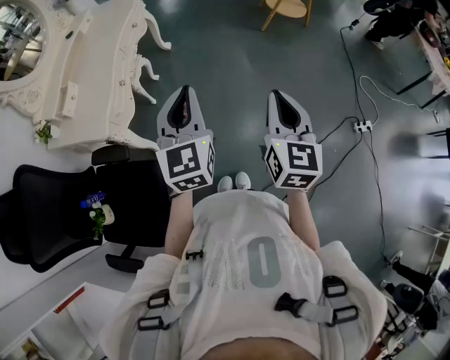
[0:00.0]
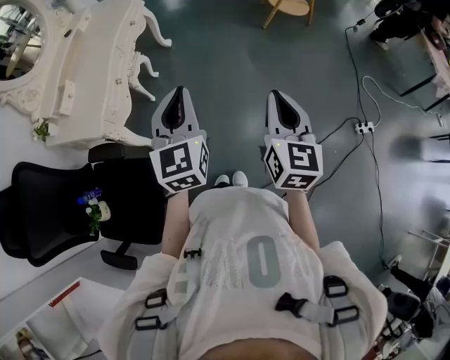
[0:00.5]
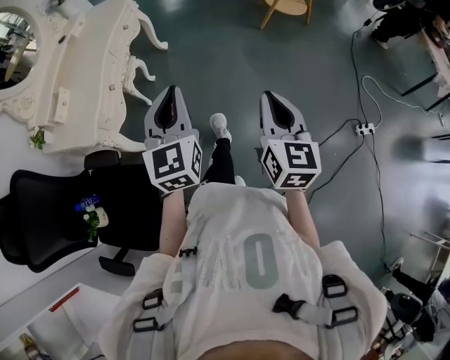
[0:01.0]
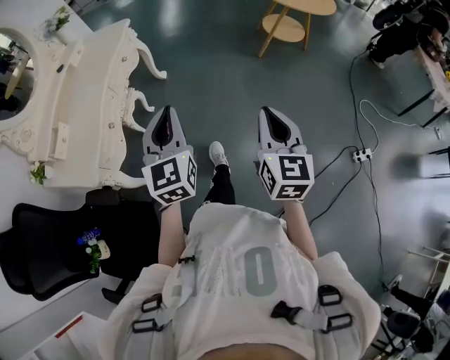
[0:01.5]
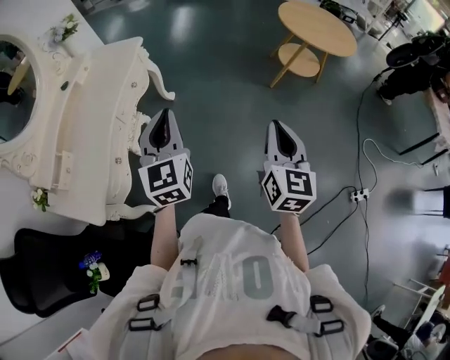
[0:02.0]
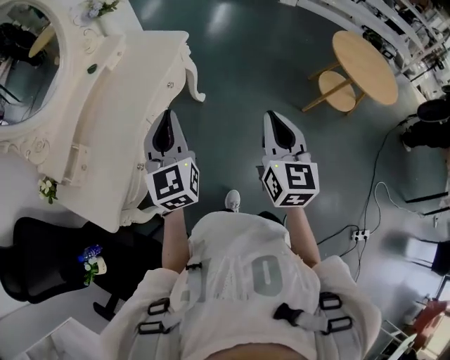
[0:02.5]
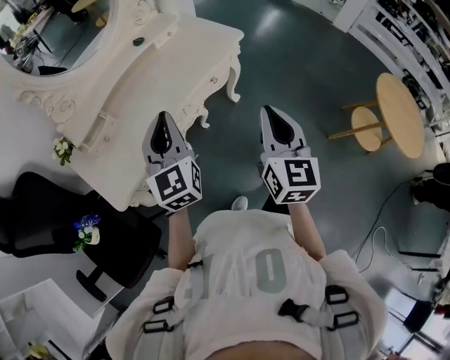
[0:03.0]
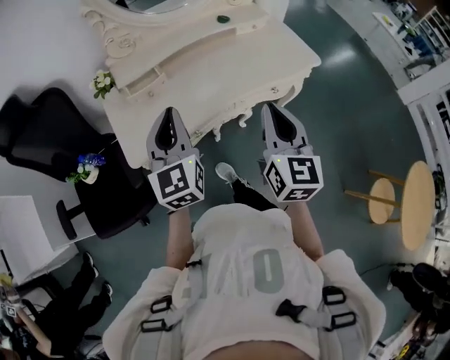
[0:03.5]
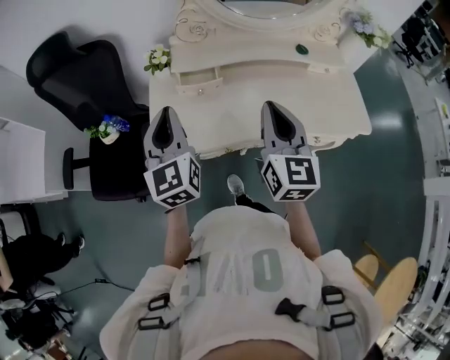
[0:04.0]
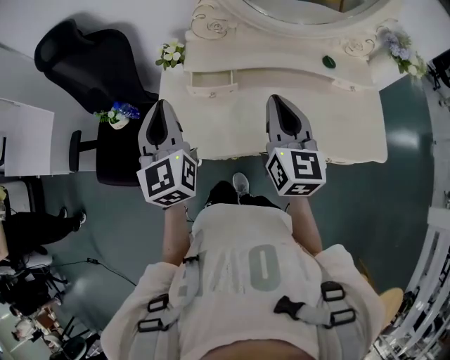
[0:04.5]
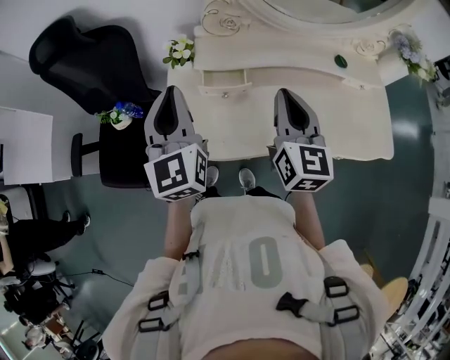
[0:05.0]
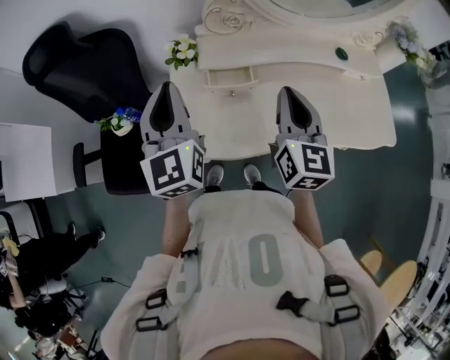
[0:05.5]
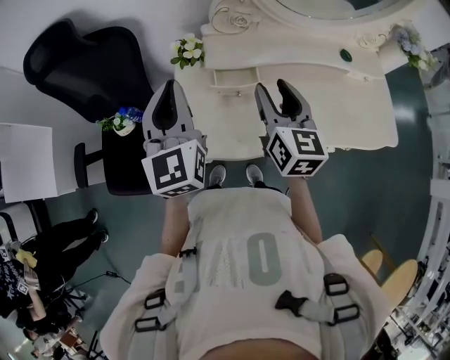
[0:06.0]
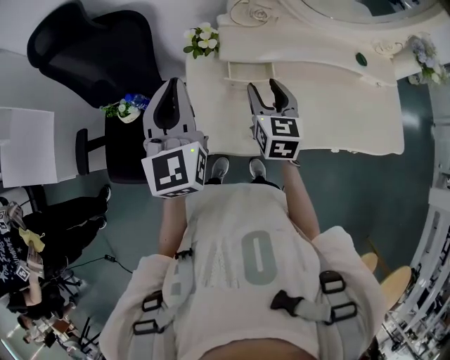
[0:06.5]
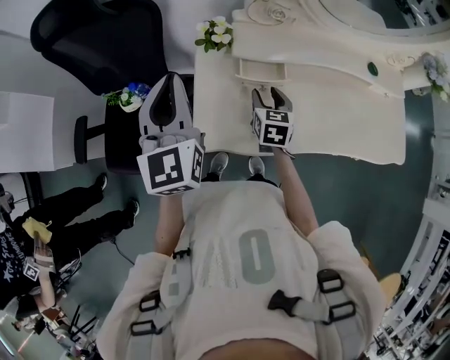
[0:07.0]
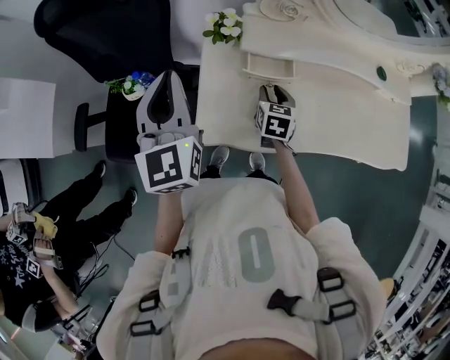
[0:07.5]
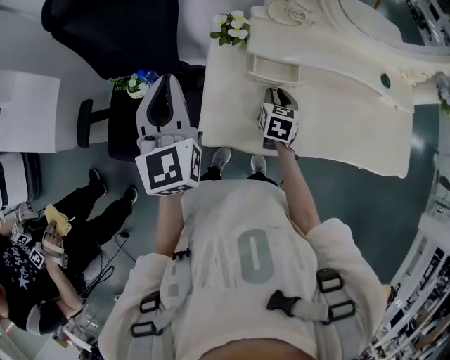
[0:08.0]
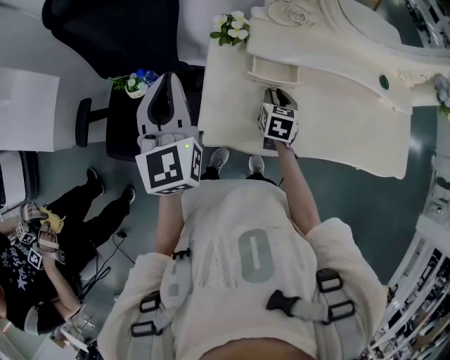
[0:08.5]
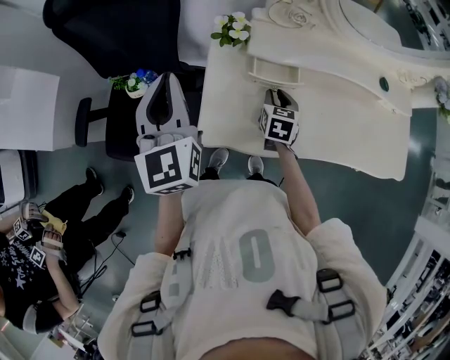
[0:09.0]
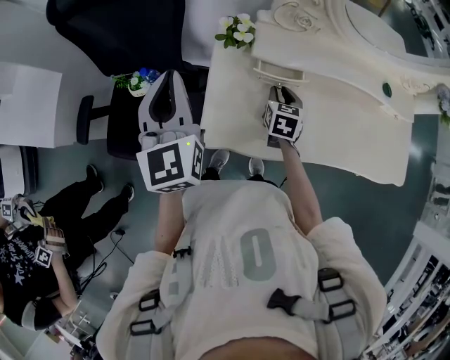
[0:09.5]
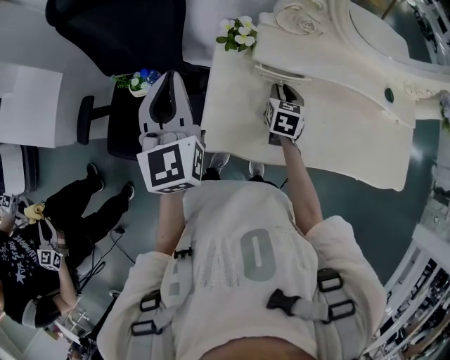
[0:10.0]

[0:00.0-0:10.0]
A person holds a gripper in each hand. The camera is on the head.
0:00.0 to 0:02.0: Both grippers travel together forward, about 35 cm.
0:02.0 to 0:04.0: Both grippers are carried roughly 50 cm. The right gripper swivels approximately 90 degrees. Meanwhile the left gripper swivels some 80 degrees.
0:04.0 to 0:06.0: The grippers both shift forward and to the left by about 15 cm. The right gripper opens its fingers.
0:06.0 to 0:08.0: The left gripper travels to the left by about 10 cm. The right gripper shifts some 25 cm downward, rotates about 30 degrees, and closes.
0:08.0 to 0:10.0: The grippers make only small movements.

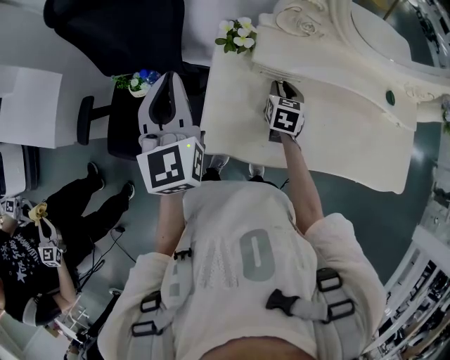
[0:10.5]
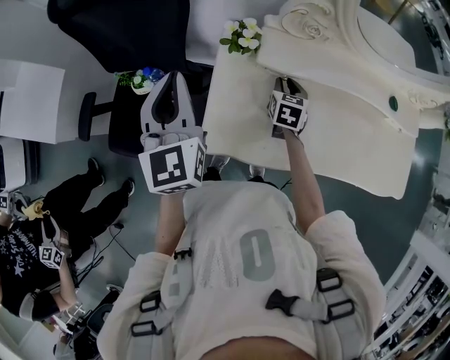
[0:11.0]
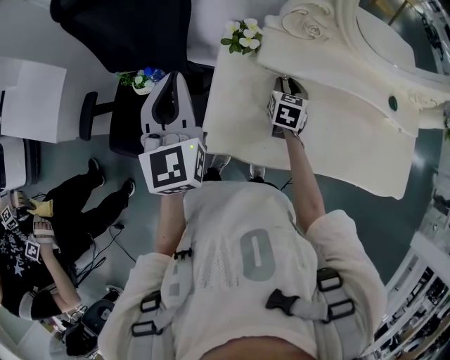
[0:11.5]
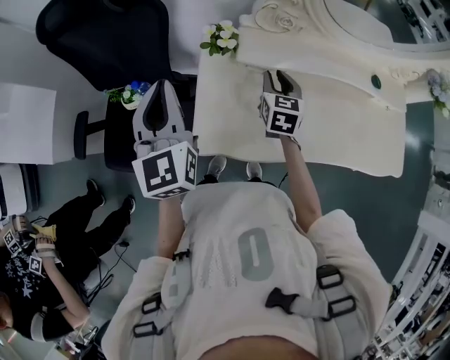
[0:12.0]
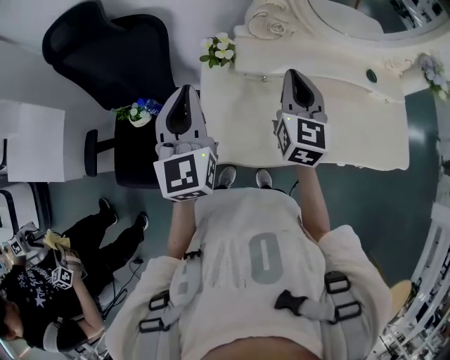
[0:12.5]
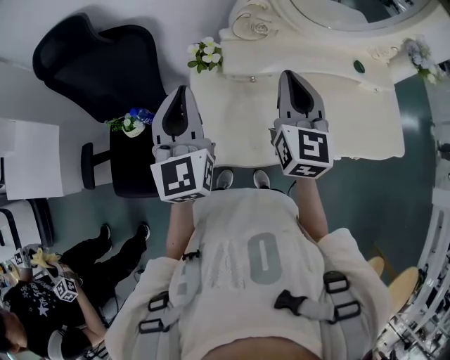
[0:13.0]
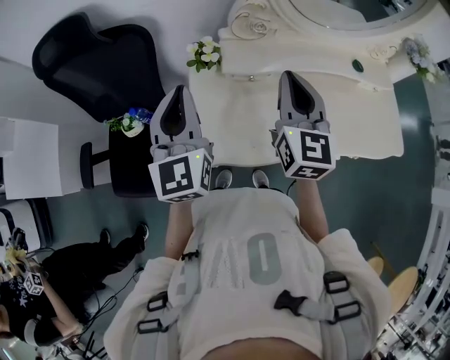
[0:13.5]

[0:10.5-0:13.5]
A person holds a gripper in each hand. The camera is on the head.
0:10.5 to 0:12.0: The right gripper moves upward, approximately 10 cm.
0:12.0 to 0:13.5: The left gripper goes approximately 5 cm to the right; the right gripper is displaced upward and backward by roughly 20 cm, changes its angle by roughly 20 degrees, and closes its fingers.

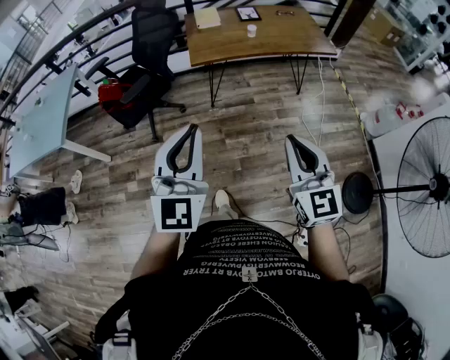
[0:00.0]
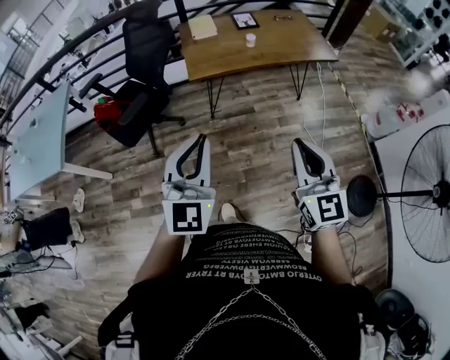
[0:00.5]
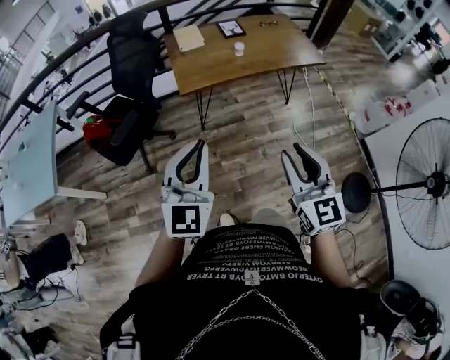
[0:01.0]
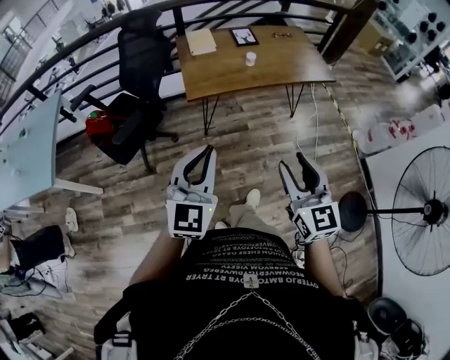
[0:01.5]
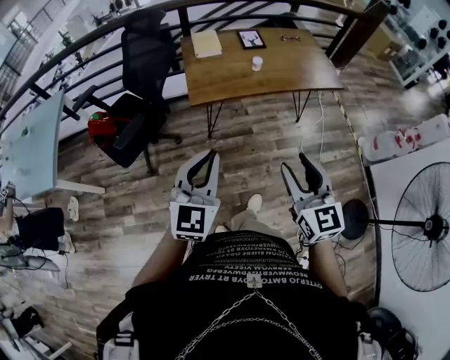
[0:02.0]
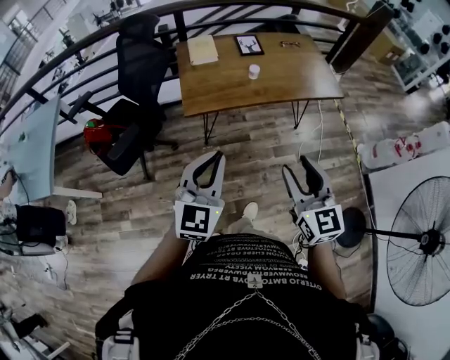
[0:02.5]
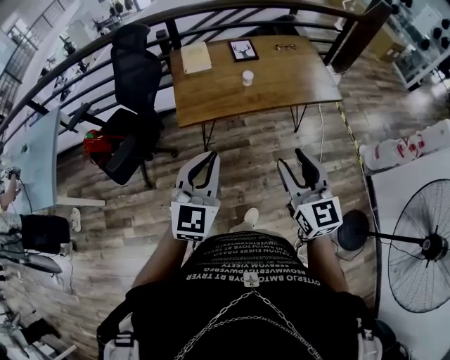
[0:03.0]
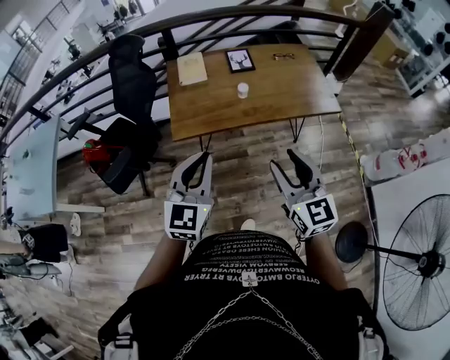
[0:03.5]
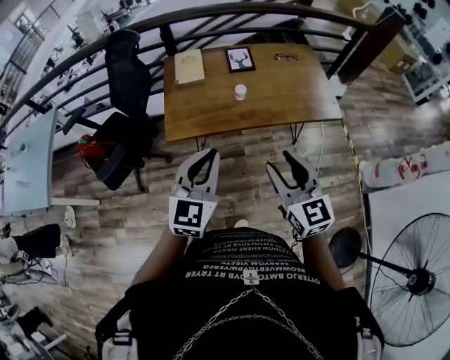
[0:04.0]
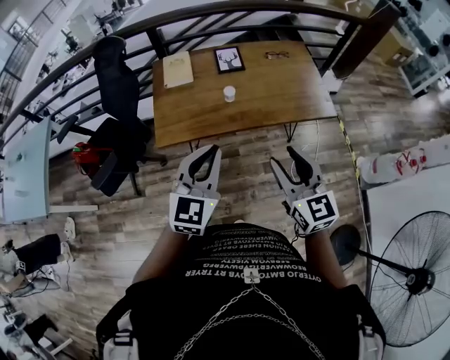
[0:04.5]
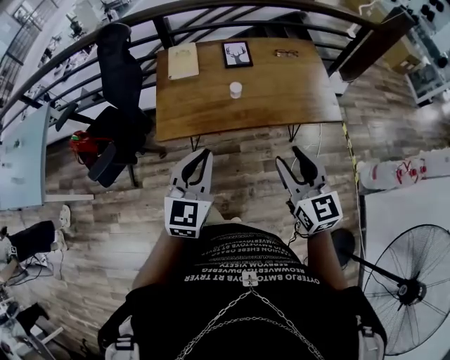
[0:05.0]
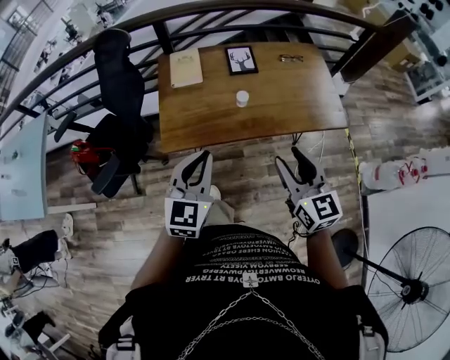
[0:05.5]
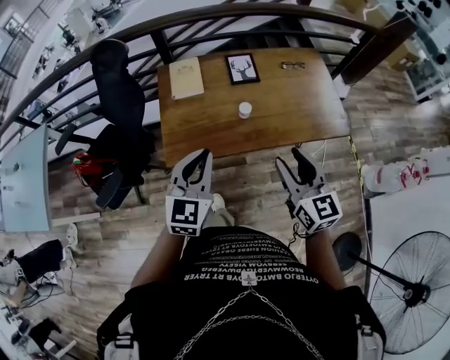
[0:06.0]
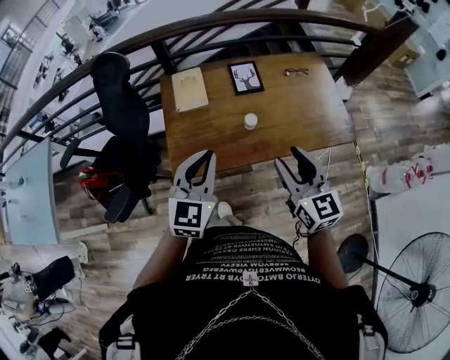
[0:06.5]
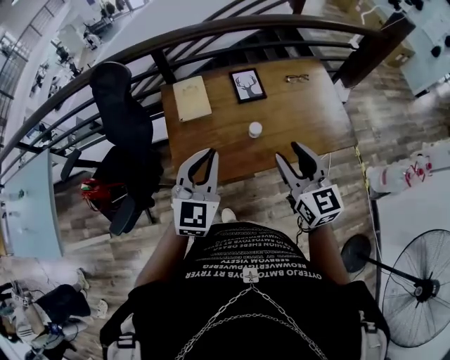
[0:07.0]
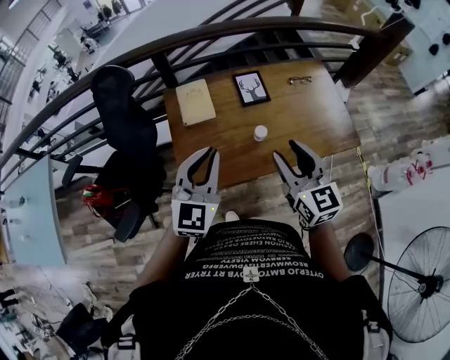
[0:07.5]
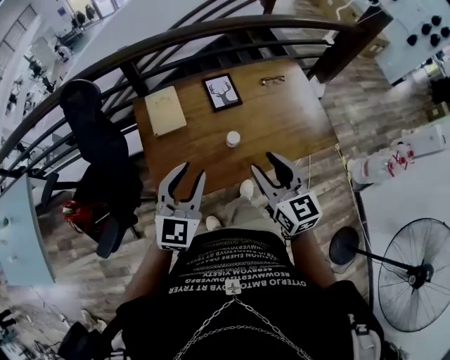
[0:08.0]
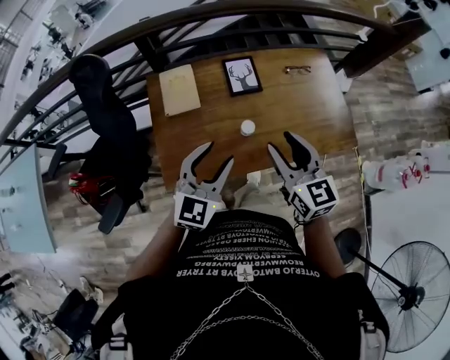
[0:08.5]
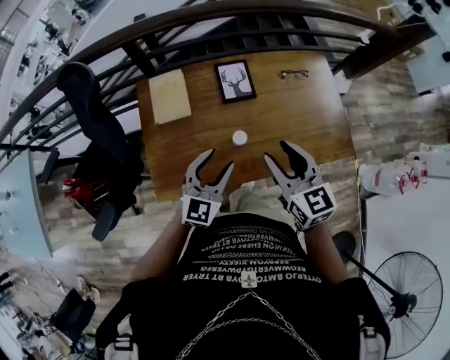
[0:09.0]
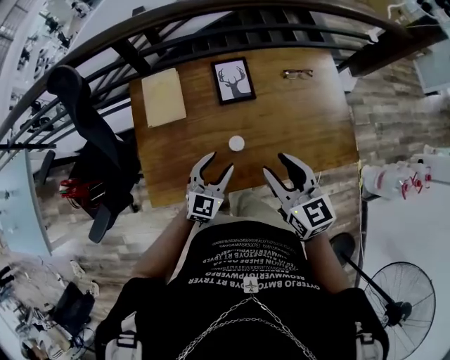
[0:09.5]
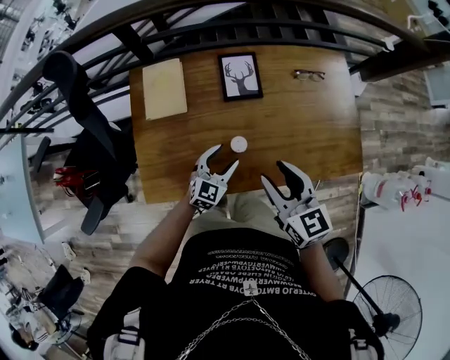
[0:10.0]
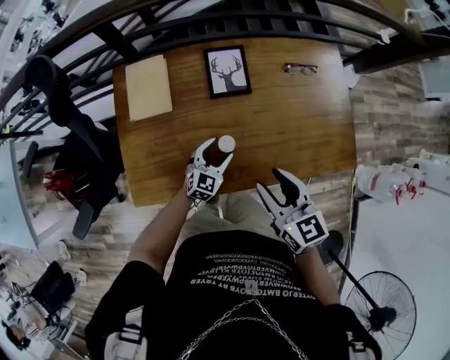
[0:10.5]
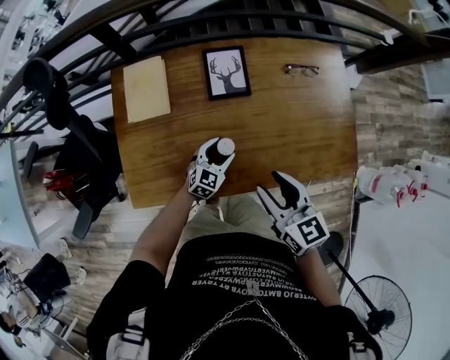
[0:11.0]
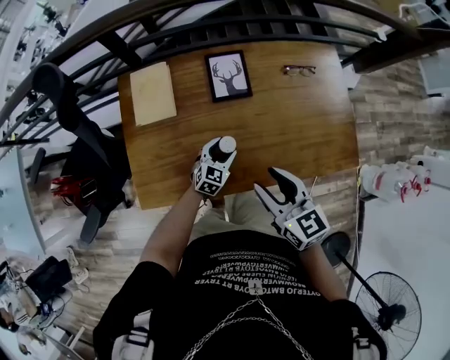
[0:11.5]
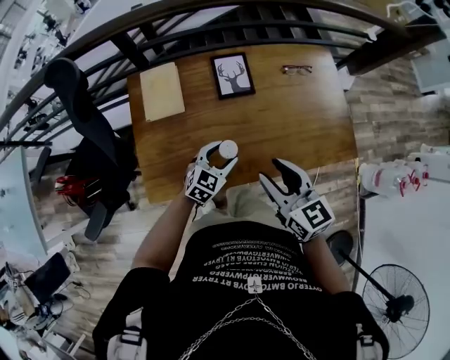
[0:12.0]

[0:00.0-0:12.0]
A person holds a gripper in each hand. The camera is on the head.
0:00.0 to 0:02.0: The grippers both shift forward by approximately 25 cm. The right gripper opens.
0:02.0 to 0:04.0: The two grippers go approximately 25 cm forward and to the right.
0:04.0 to 0:06.0: The grippers both shift forward by approximately 15 cm.
0:06.0 to 0:08.0: The right gripper goes approximately 15 cm forward and to the left. Meanwhile the left gripper shifts roughly 10 cm forward, and opens.
0:08.0 to 0:10.0: The left gripper shifts approximately 35 cm downward, forward and to the right, and opens; the right gripper shifts about 15 cm downward, forward and to the right.
0:10.0 to 0:12.0: The left gripper reaches roughly 5 cm downward, then returns.

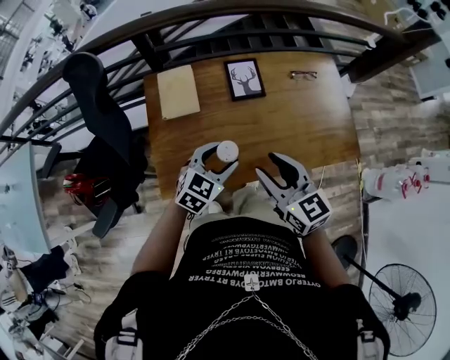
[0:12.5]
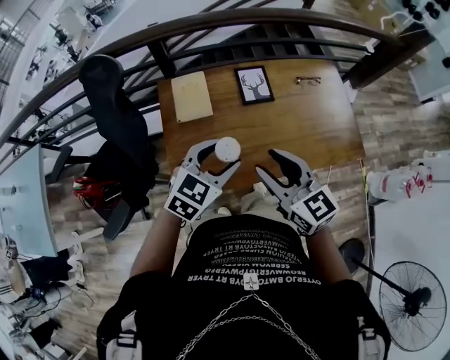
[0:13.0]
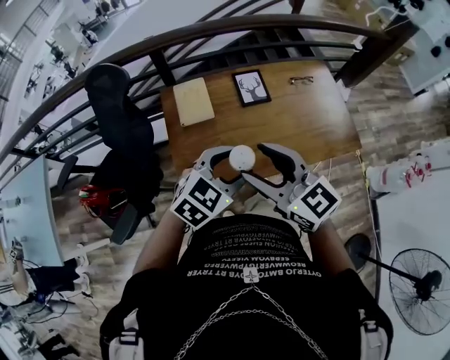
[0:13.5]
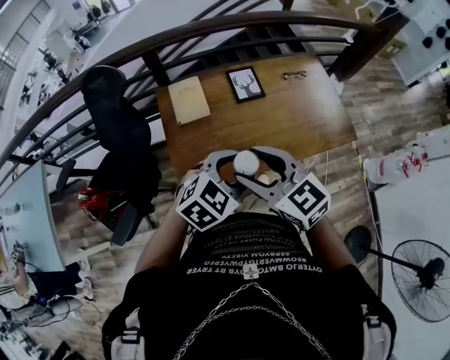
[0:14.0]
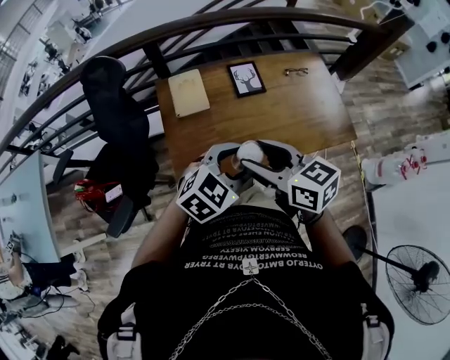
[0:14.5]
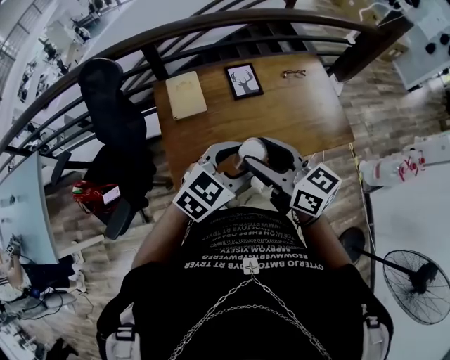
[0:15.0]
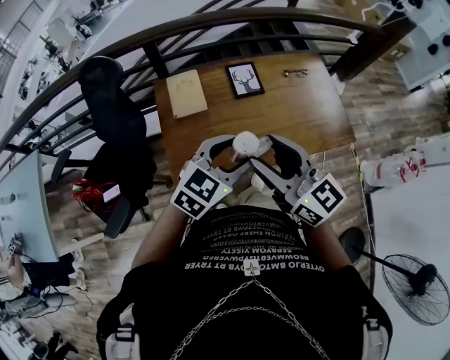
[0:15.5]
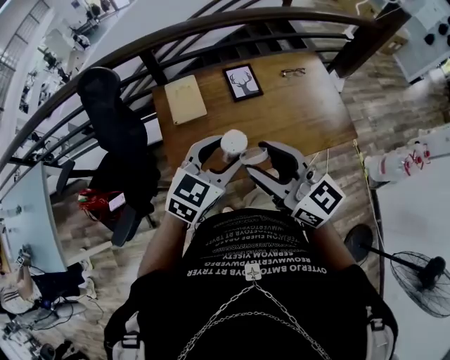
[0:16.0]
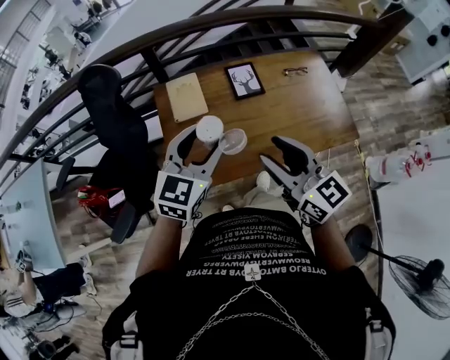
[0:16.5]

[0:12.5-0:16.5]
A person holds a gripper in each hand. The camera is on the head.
0:12.5 to 0:14.5: The right gripper is displaced to the left, upward and backward by approximately 15 cm; the left gripper moves upward and backward, some 20 cm.
0:14.5 to 0:16.5: The left gripper shifts approximately 10 cm forward and to the left, and turns by some 30 degrees. Meanwhile the right gripper is displaced to the right by some 5 cm, and changes its angle by approximately 20 degrees.
